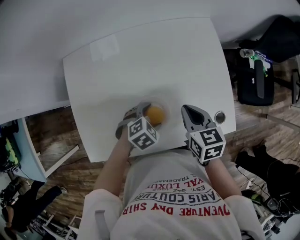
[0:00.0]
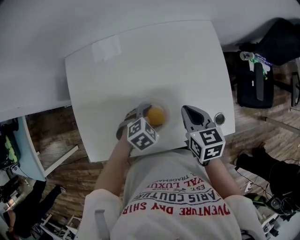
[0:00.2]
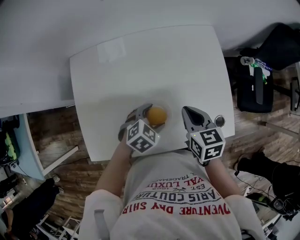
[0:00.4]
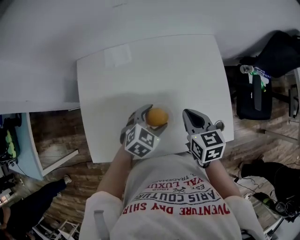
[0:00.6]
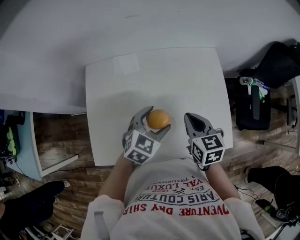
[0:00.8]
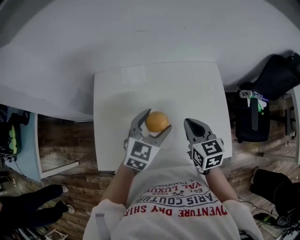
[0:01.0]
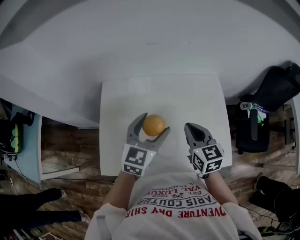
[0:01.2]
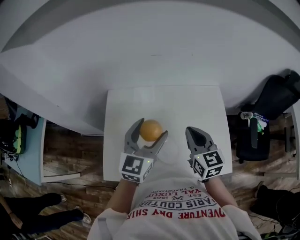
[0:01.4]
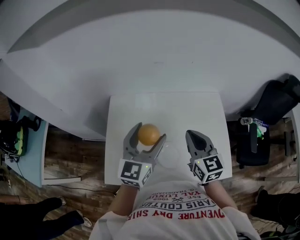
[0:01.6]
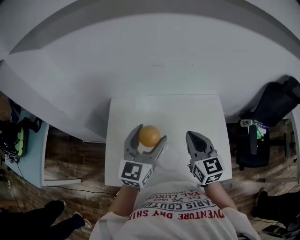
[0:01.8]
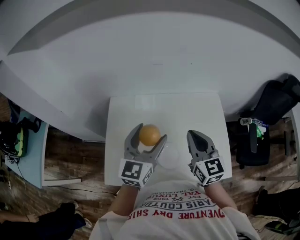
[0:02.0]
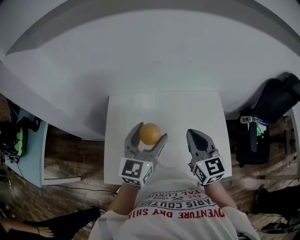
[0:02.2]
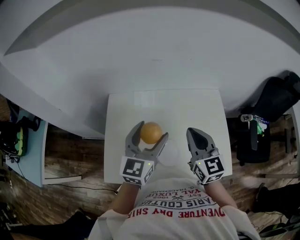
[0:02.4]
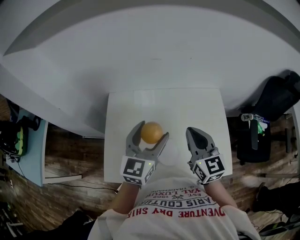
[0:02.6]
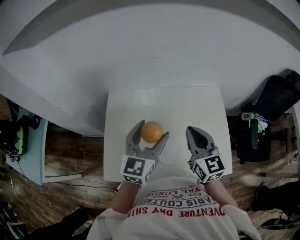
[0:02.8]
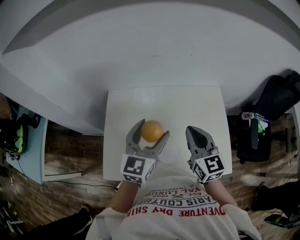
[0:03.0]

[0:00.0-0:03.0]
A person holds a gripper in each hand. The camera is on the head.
0:00.0 to 0:01.6: The left gripper goes some 35 cm upward, and tilts its fingers about 60 degrees upward, while the right gripper travels upward by some 20 cm, and rotates about 30 degrees.
0:01.6 to 0:03.0: There are only small adjustments of the grippers.

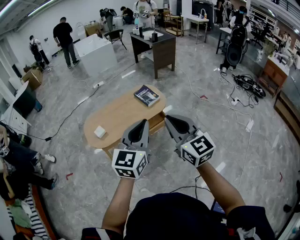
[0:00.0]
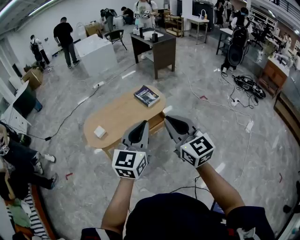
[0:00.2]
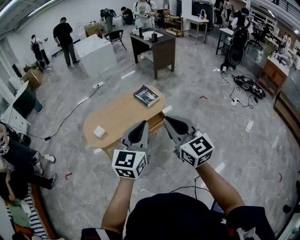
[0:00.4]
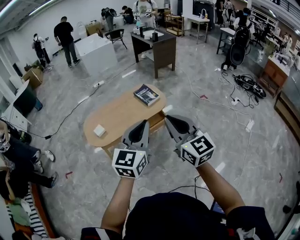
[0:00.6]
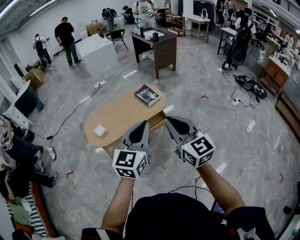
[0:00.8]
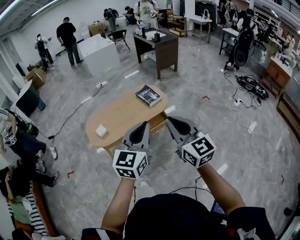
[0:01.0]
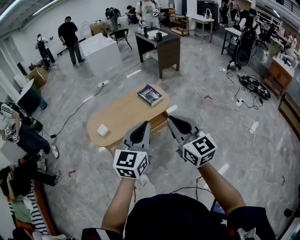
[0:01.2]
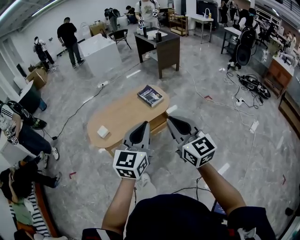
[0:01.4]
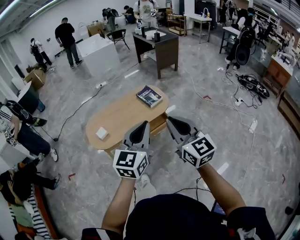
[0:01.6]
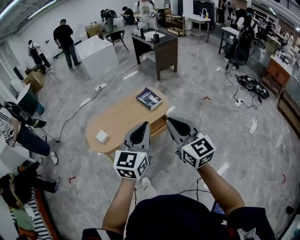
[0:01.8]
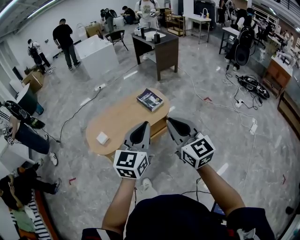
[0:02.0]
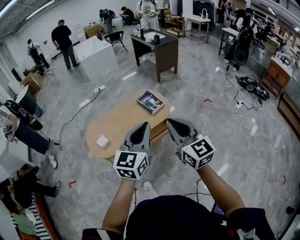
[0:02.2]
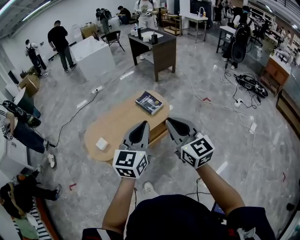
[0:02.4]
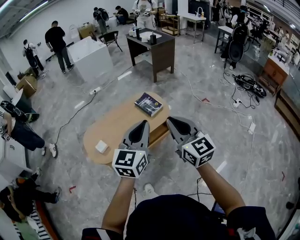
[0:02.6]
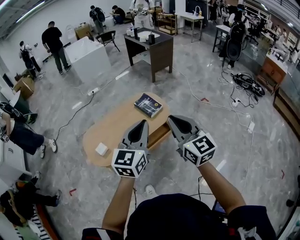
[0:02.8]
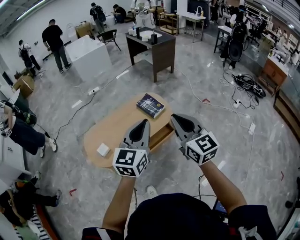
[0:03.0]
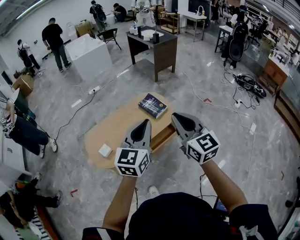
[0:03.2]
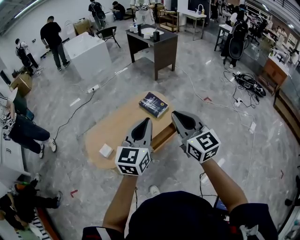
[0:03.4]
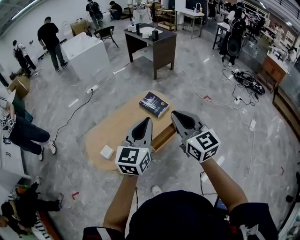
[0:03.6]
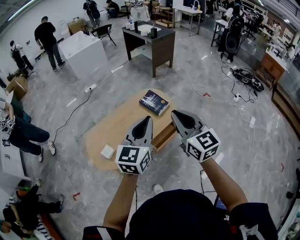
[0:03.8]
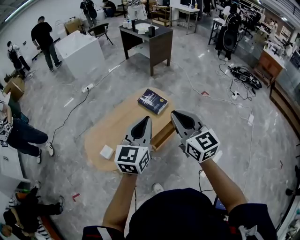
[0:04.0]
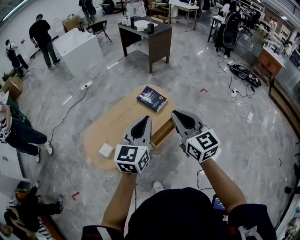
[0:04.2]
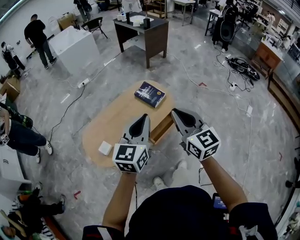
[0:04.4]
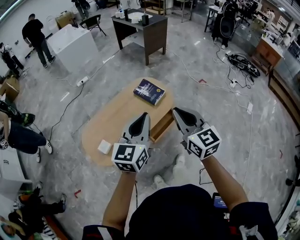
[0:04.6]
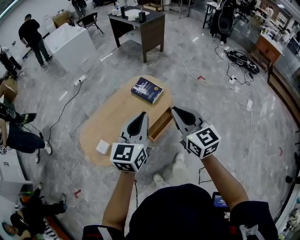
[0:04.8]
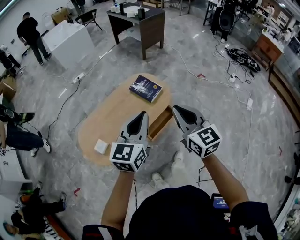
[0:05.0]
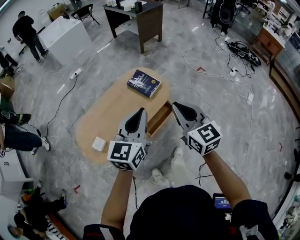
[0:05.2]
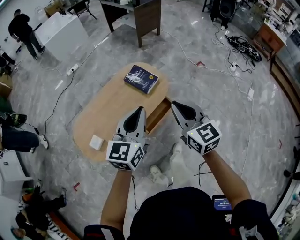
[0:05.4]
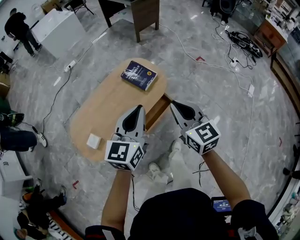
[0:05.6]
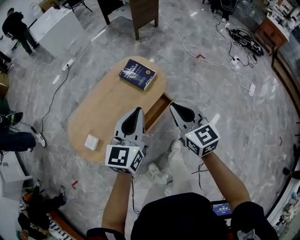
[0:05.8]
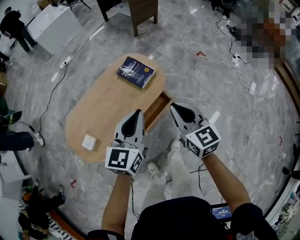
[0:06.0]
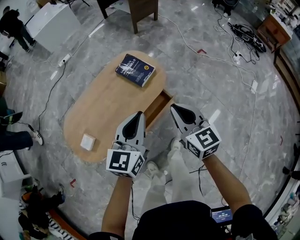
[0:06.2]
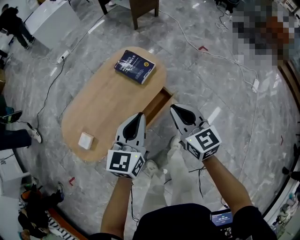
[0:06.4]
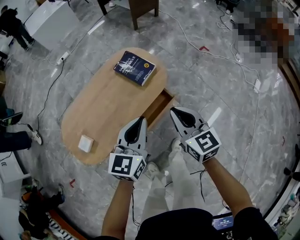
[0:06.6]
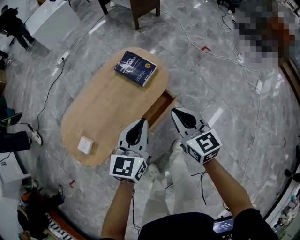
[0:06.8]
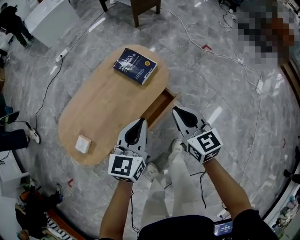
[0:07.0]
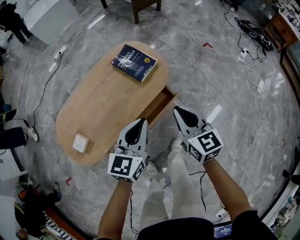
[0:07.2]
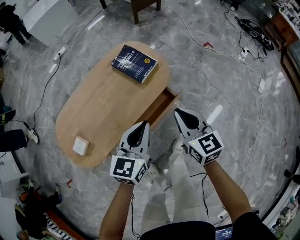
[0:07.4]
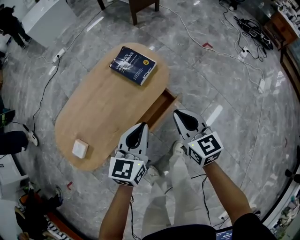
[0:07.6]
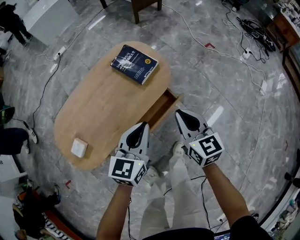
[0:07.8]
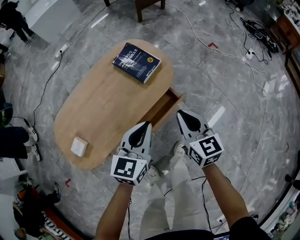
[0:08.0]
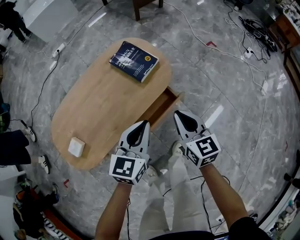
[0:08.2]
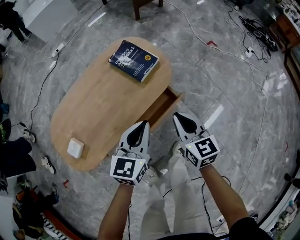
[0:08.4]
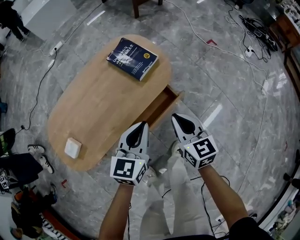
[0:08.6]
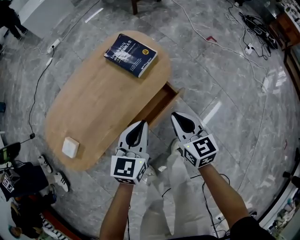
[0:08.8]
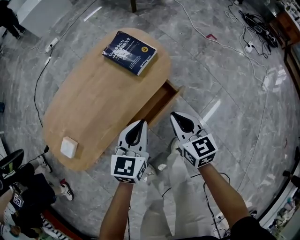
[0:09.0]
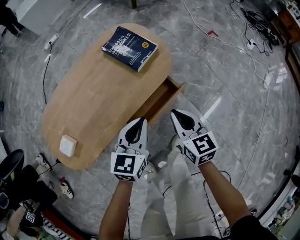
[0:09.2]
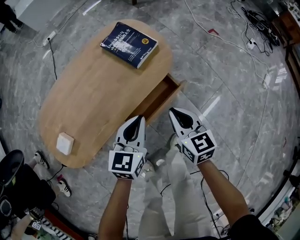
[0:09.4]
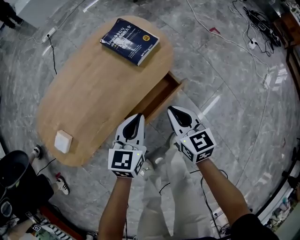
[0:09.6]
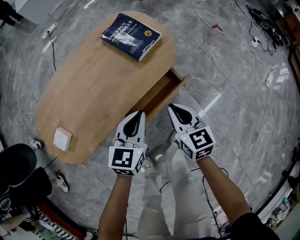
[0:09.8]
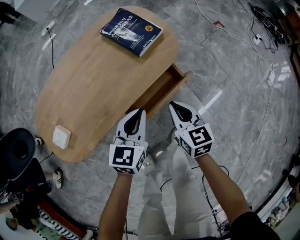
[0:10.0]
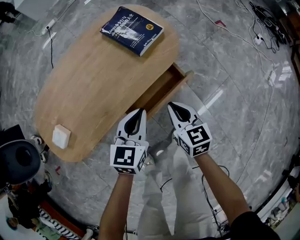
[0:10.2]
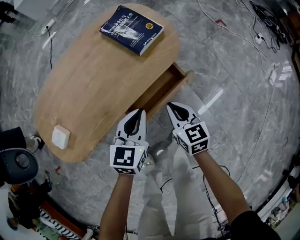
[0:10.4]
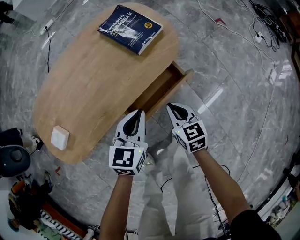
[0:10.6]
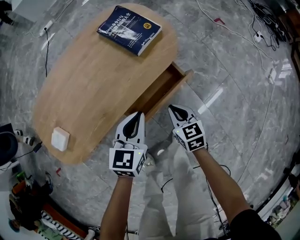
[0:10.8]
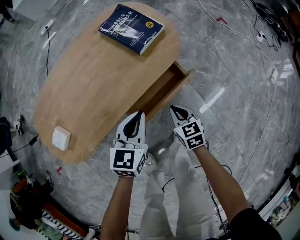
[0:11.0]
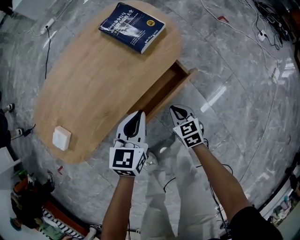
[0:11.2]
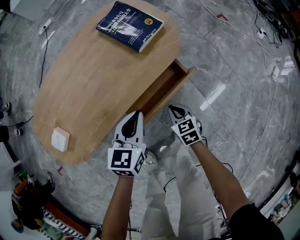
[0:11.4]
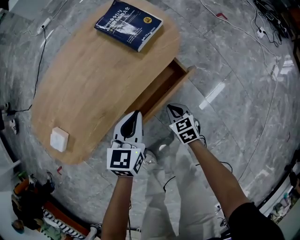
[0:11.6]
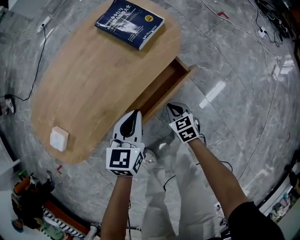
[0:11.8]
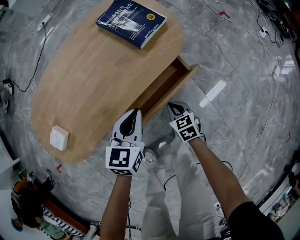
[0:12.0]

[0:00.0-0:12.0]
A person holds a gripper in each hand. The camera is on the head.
0:00.0 to 0:01.6: There are only small adjustments of the grippers.
0:01.6 to 0:03.0: The right gripper is displaced forward by some 15 cm; the left gripper shifts approximately 20 cm forward and to the left.
0:03.0 to 0:04.4: The right gripper shifts about 10 cm to the left and downward. Meanwhile the left gripper shifts about 10 cm to the left, forward and downward.
0:04.4 to 0:06.0: Both grippers move downward, forward and to the right, roughly 20 cm.
0:06.0 to 0:07.6: The two grippers go roughly 15 cm downward.
0:07.6 to 0:09.0: Both grippers travel together downward, approximately 10 cm.
0:09.0 to 0:10.4: Both grippers travel together downward, some 10 cm.
0:10.4 to 0:12.0: The right gripper travels downward by approximately 15 cm.

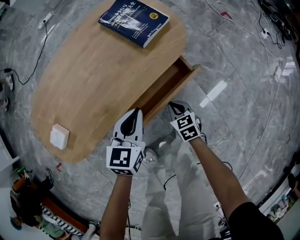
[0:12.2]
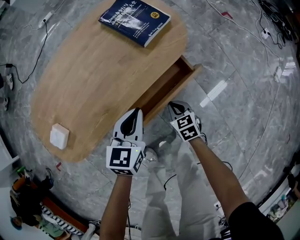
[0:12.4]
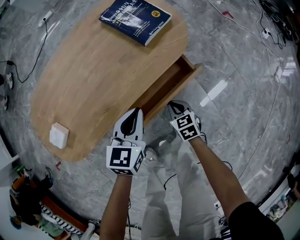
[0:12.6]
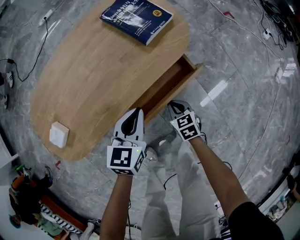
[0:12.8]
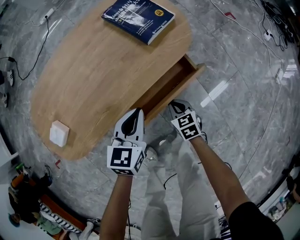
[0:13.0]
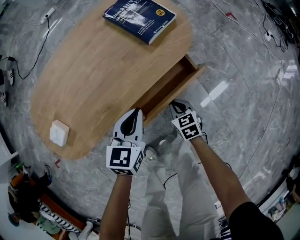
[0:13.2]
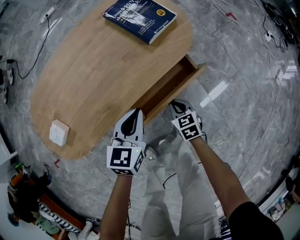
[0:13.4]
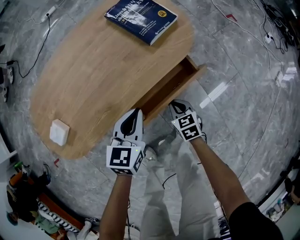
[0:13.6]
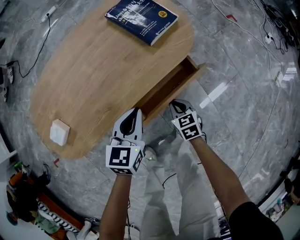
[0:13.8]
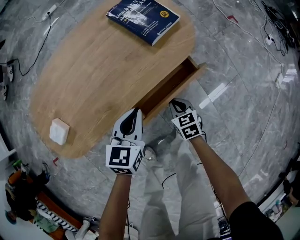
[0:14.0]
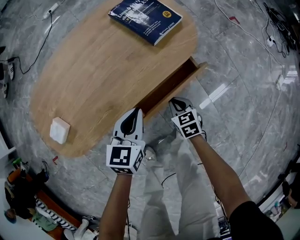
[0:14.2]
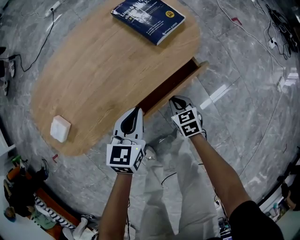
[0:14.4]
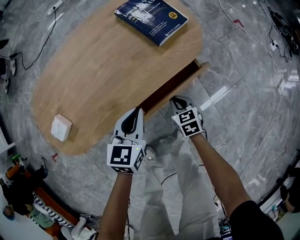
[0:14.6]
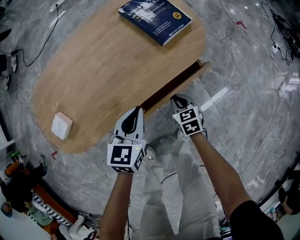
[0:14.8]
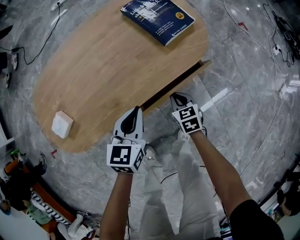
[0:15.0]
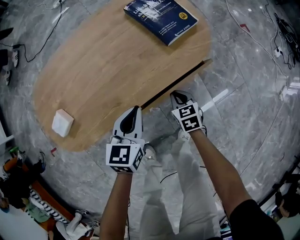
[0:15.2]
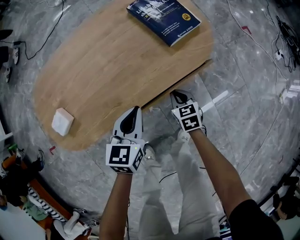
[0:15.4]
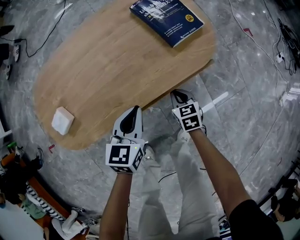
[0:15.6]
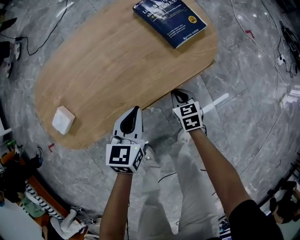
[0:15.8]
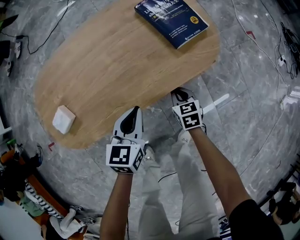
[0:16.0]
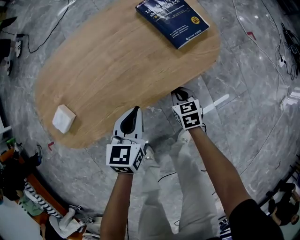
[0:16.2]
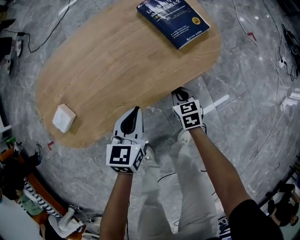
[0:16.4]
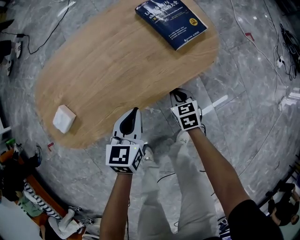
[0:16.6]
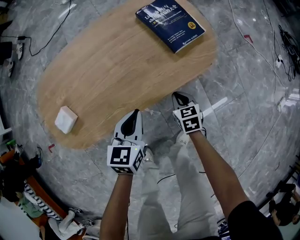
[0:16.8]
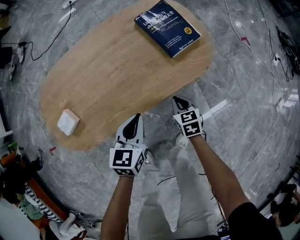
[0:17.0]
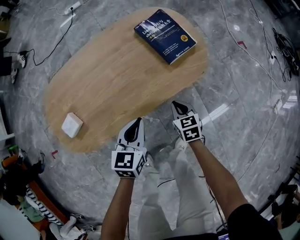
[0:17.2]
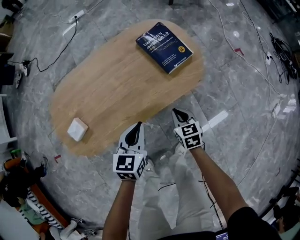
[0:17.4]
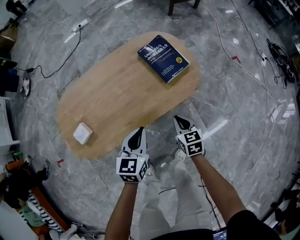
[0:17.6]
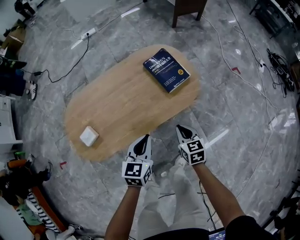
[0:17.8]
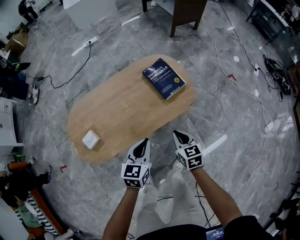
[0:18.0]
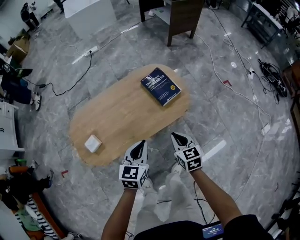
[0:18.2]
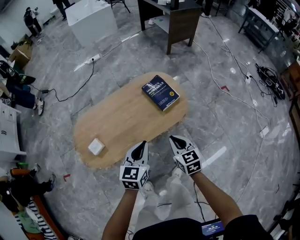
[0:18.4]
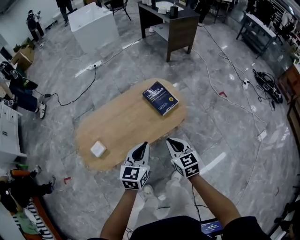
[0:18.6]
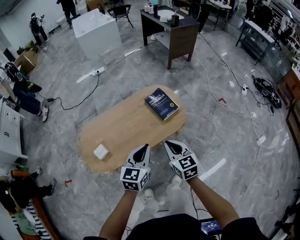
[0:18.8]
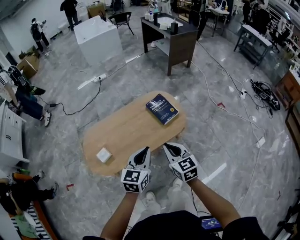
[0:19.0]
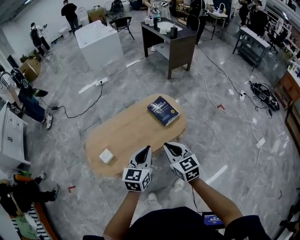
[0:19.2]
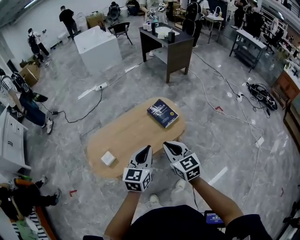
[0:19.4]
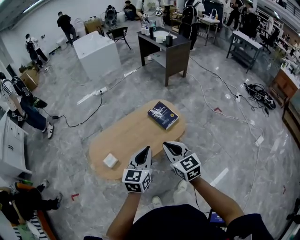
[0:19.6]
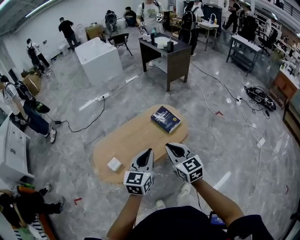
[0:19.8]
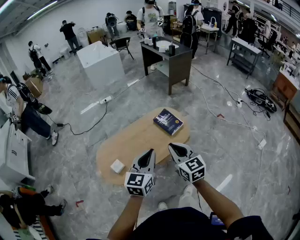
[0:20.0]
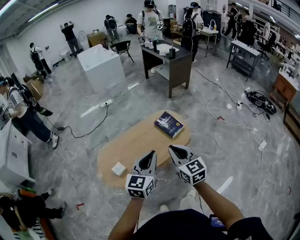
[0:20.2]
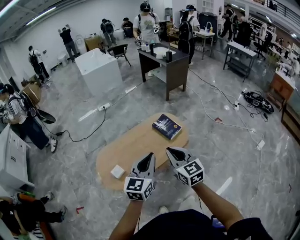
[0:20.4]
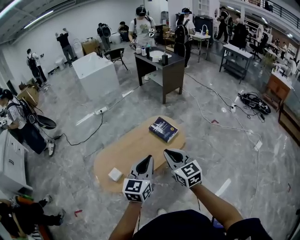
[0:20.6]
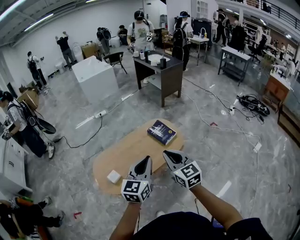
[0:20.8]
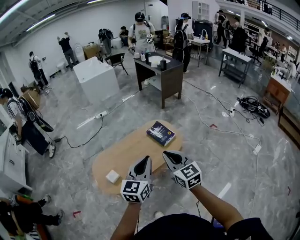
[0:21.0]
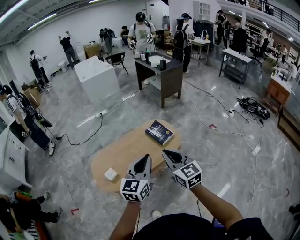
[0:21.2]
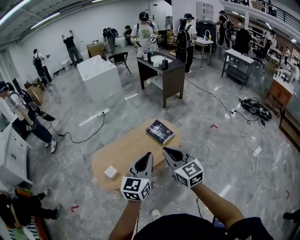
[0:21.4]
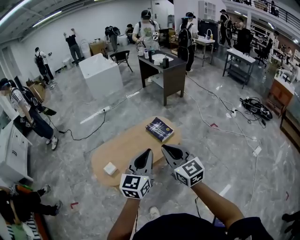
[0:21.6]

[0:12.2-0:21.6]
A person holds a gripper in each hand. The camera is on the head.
0:12.2 to 0:13.8: There are only small adjustments of the grippers.
0:13.8 to 0:15.4: The right gripper heads forward, covering about 5 cm.
0:15.4 to 0:17.0: The grippers move only a little.
0:17.0 to 0:18.4: The grippers both shift upward by some 30 cm.
0:18.4 to 0:20.0: The left gripper heads upward and backward, covering some 20 cm, while the right gripper travels upward, to the left and backward by some 25 cm, and changes its angle by about 20 degrees.
0:20.0 to 0:21.6: The left gripper shifts some 15 cm upward, to the right and backward; the right gripper heads upward, backward and to the right, covering about 15 cm.
